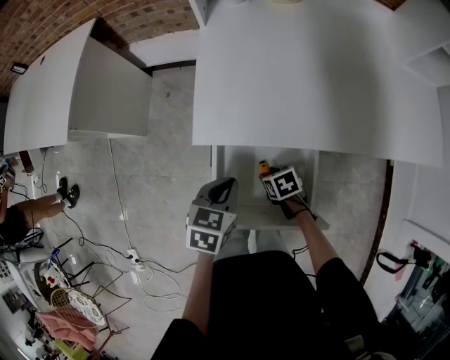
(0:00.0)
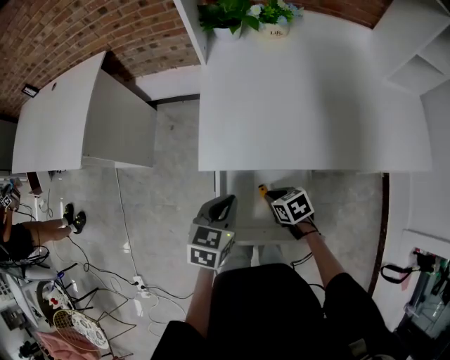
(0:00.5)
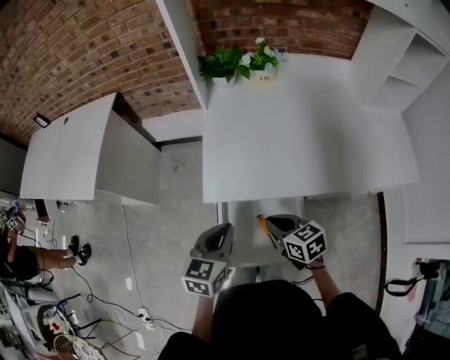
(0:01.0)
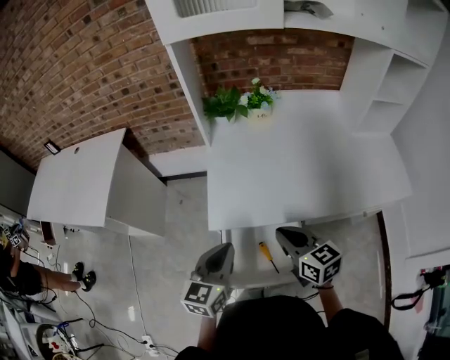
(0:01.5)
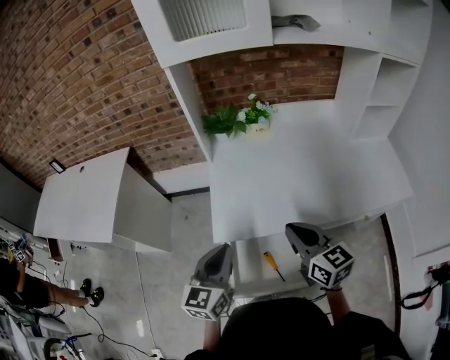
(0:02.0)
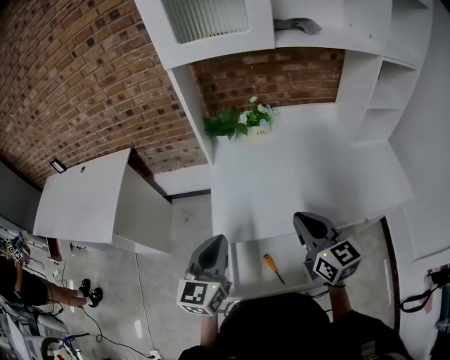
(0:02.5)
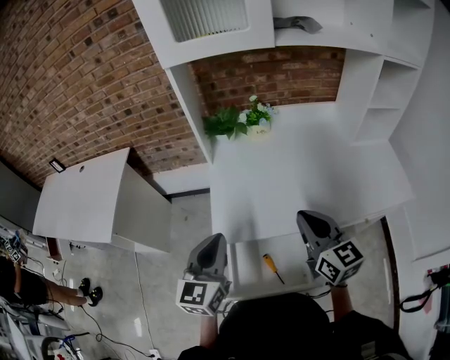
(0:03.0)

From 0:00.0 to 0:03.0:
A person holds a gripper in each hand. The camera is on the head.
From 0:00.0 to 0:01.5: The right gripper is displaced upward by some 35 cm, points its fingers some 50 degrees further upward, and closes its fingers. Meanwhile the left gripper shifts roughly 20 cm upward, and tilts its fingers roughly 30 degrees upward.
From 0:01.5 to 0:03.0: The right gripper travels upward and to the right by roughly 10 cm, and turns by approximately 20 degrees. Meanwhile the left gripper moves upward, some 10 cm.

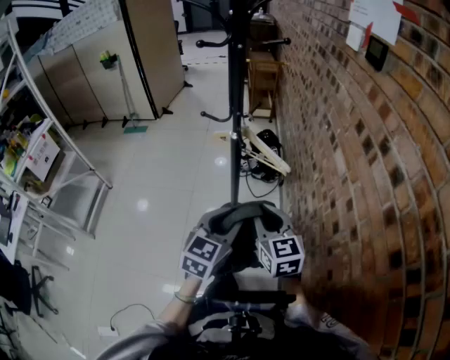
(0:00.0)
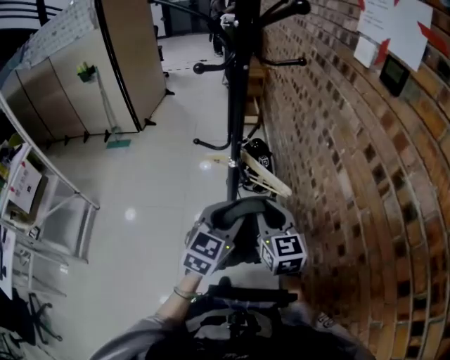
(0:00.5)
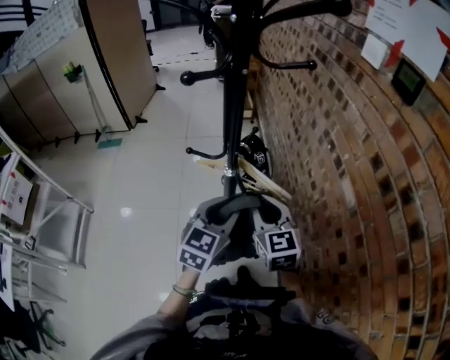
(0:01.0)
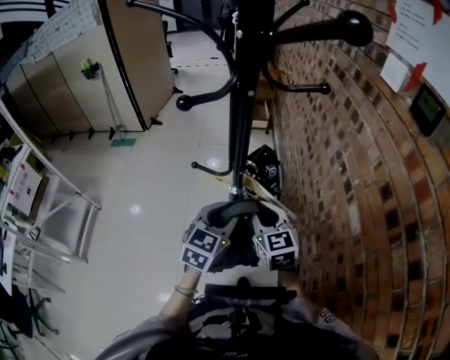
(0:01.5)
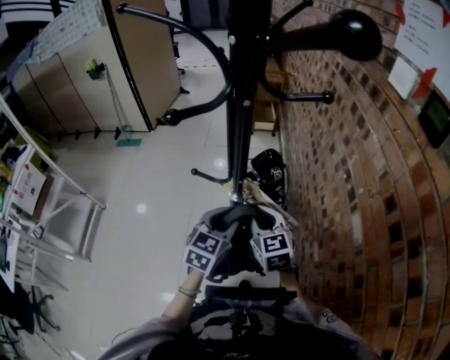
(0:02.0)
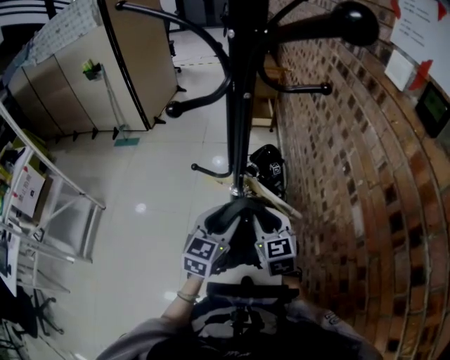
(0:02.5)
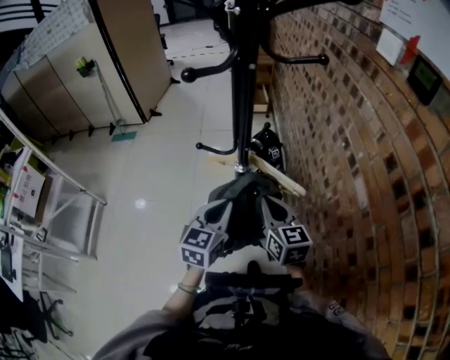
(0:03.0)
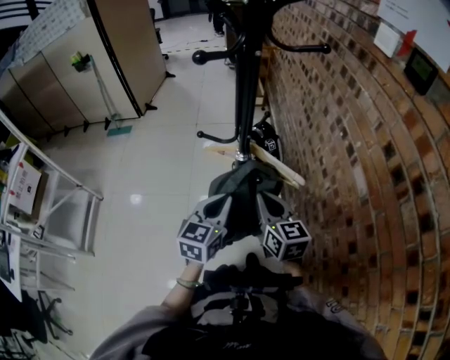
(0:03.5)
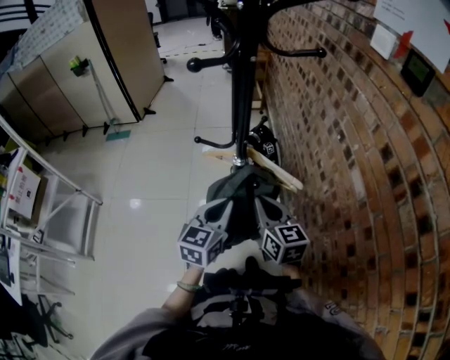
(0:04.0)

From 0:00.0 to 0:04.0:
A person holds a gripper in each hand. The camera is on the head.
From 0:00.0 to 0:02.0: The two grippers go roughly 25 cm forward.
From 0:02.0 to 0:04.0: The two grippers go some 10 cm backward. The left gripper closes its fingers. Meanwhile the right gripper rotates about 20 degrees.

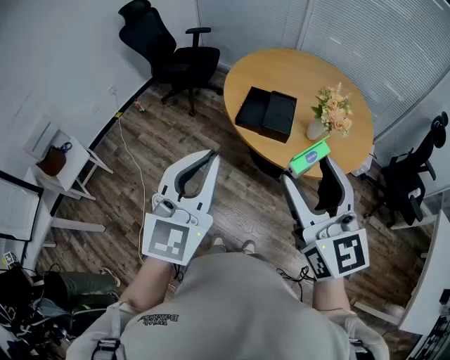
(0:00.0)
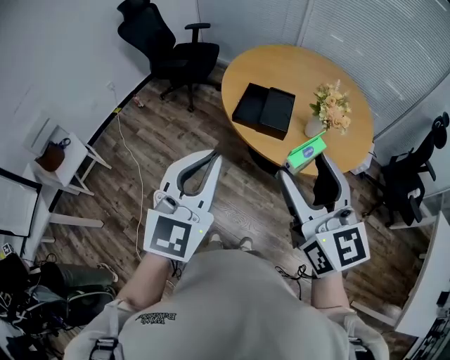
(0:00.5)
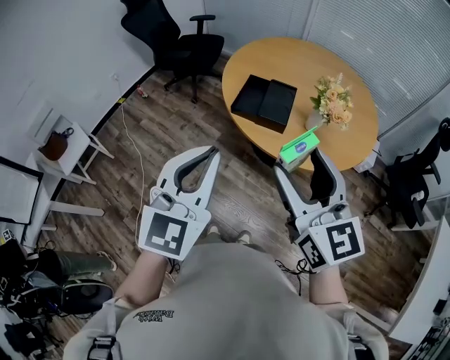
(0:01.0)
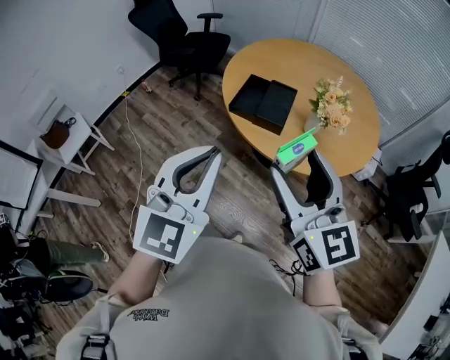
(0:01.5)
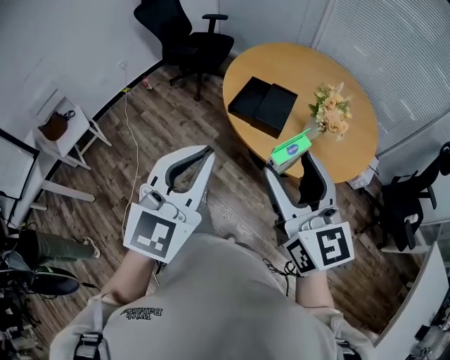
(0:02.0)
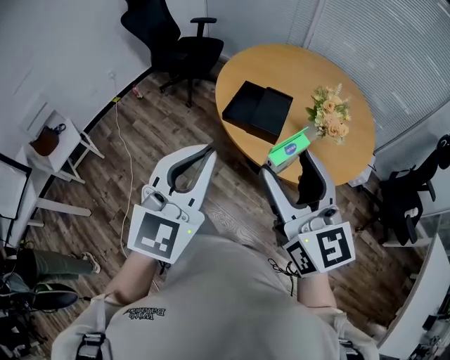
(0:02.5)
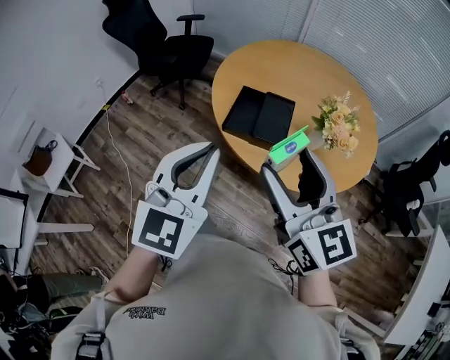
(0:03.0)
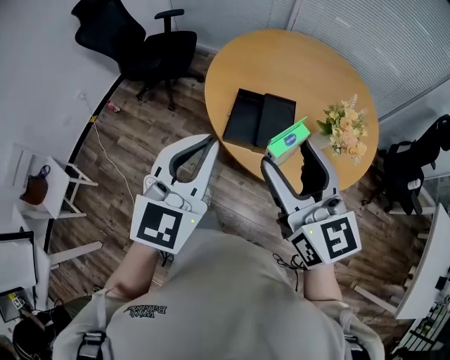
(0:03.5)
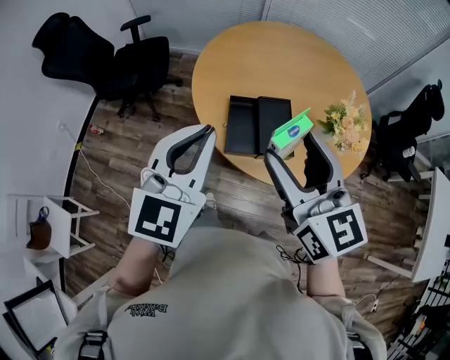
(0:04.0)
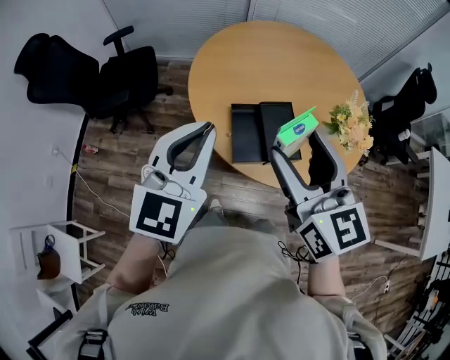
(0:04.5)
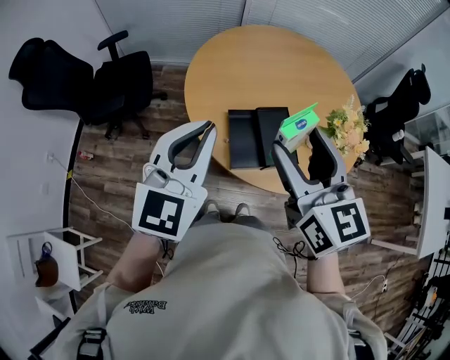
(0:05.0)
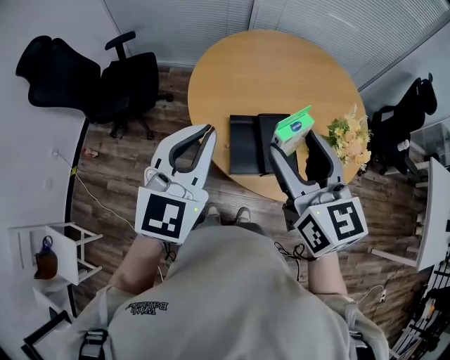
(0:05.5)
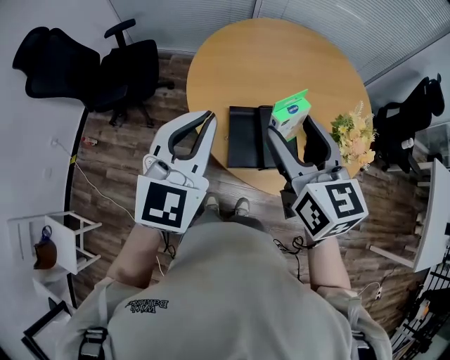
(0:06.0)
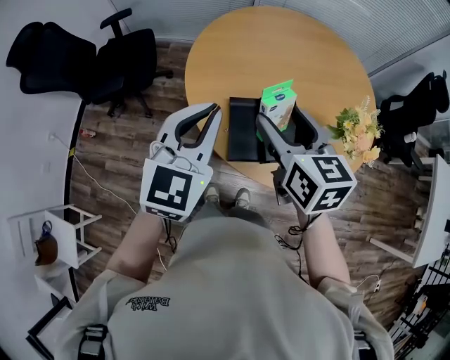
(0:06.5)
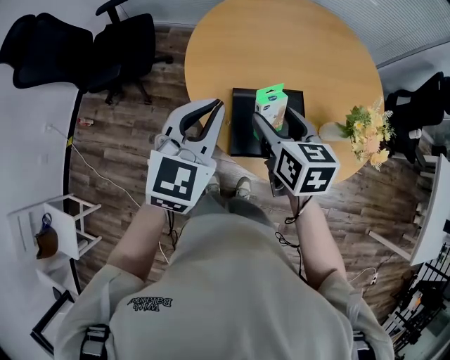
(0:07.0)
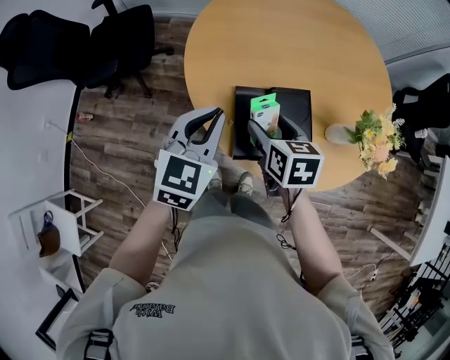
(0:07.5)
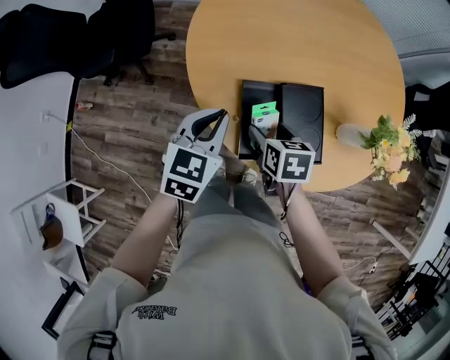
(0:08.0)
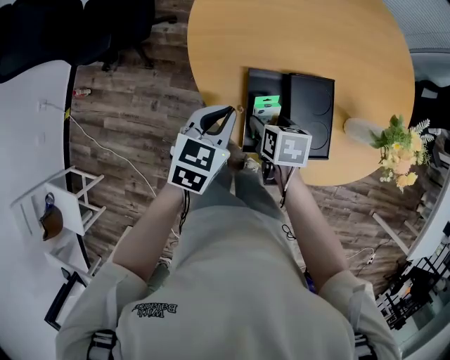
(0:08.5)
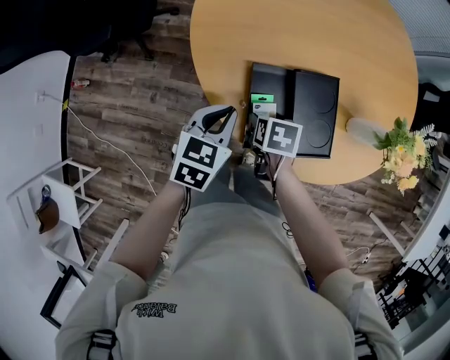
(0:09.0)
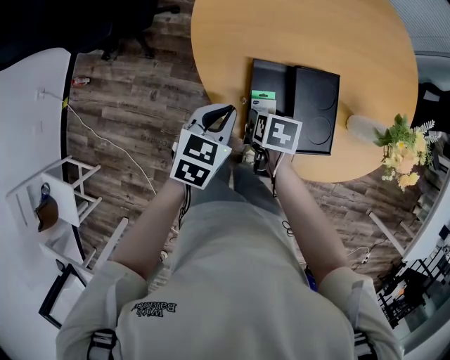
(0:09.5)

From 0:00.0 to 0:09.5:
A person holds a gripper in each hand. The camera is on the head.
From 0:00.0 to 0:02.0: The grippers both shift to the right by some 5 cm.
From 0:02.0 to 0:04.0: The right gripper goes approximately 30 cm forward and to the left, and turns by roughly 20 degrees. The left gripper is displaced forward by some 35 cm, and changes its angle by roughly 20 degrees.
From 0:04.0 to 0:05.5: Both grippers travel together forward, some 5 cm.
From 0:05.5 to 0:07.5: The left gripper moves downward and forward, roughly 20 cm, and swivels some 20 degrees. Meanwhile the right gripper is displaced downward by some 25 cm, and tilts its fingers approximately 30 degrees downward.
From 0:07.5 to 0:09.5: Both grippers travel together downward, about 15 cm. The right gripper turns by roughly 30 degrees. The left gripper changes its angle by some 20 degrees.

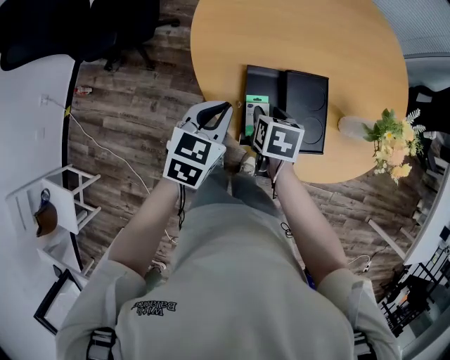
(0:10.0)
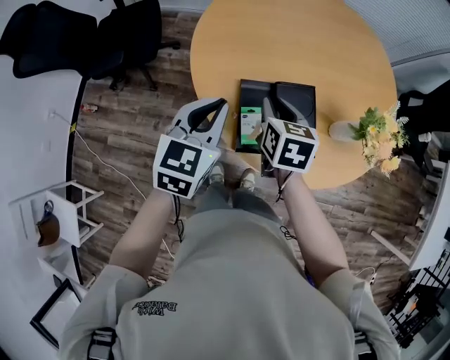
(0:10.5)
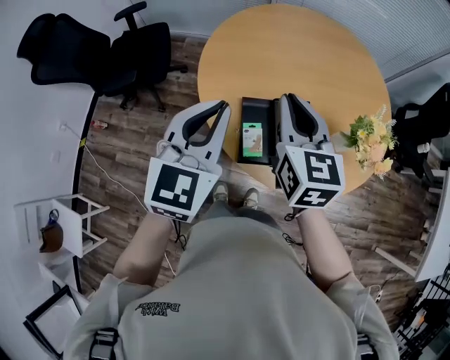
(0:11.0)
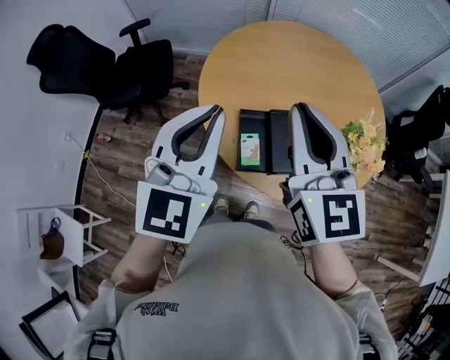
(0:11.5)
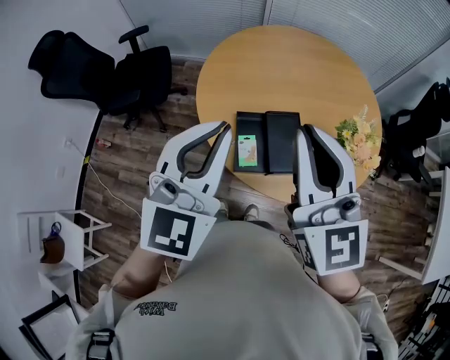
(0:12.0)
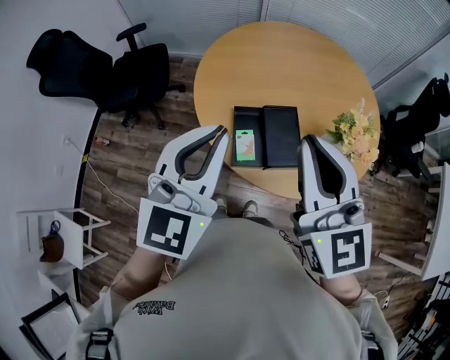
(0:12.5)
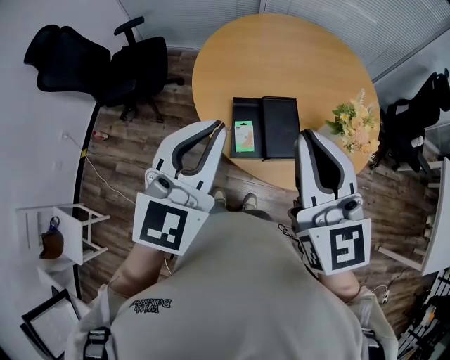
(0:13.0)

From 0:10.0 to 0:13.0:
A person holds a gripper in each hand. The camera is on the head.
From 0:10.0 to 0:11.5: The two grippers go approximately 35 cm upward. The left gripper tilts its fingers roughly 30 degrees upward. The right gripper angles its fingers upward, by roughly 60 degrees, and closes.
From 0:11.5 to 0:13.0: Both grippers move backward, some 10 cm.

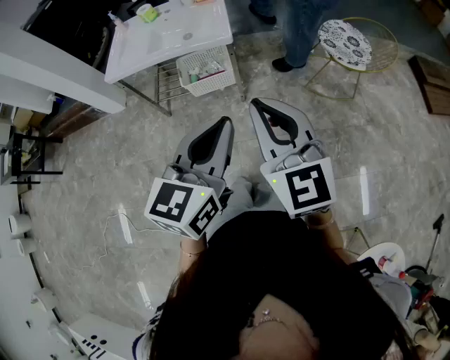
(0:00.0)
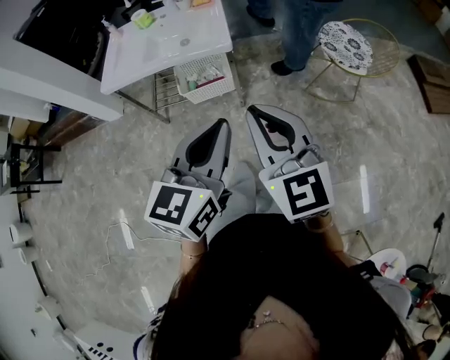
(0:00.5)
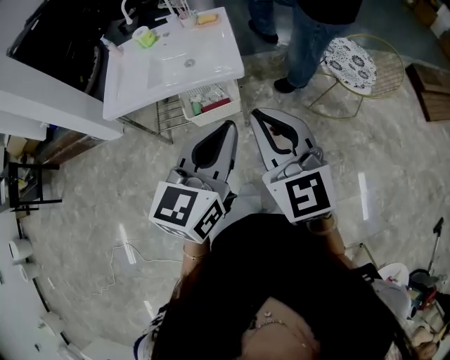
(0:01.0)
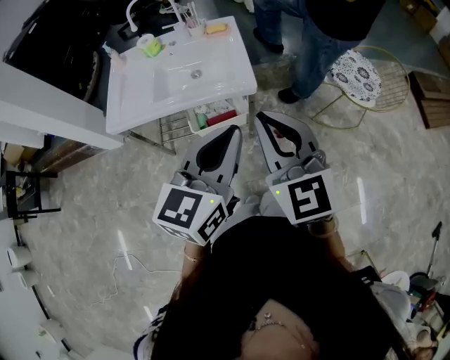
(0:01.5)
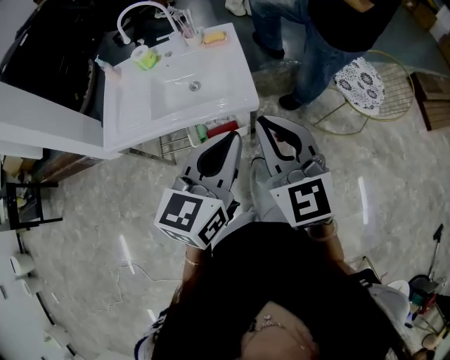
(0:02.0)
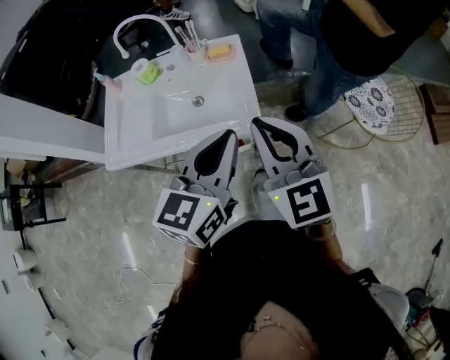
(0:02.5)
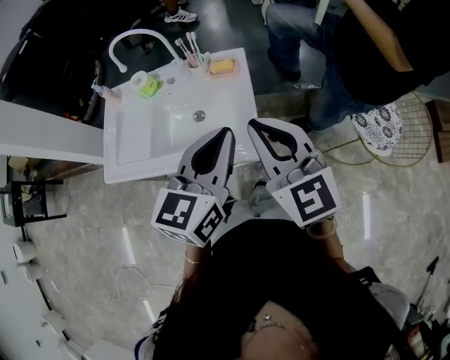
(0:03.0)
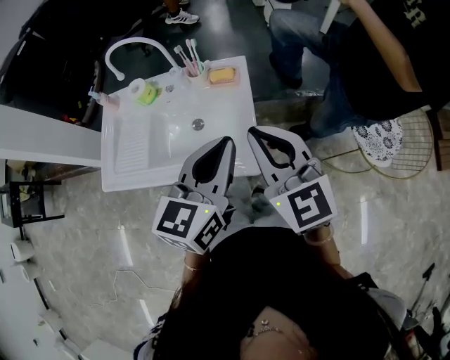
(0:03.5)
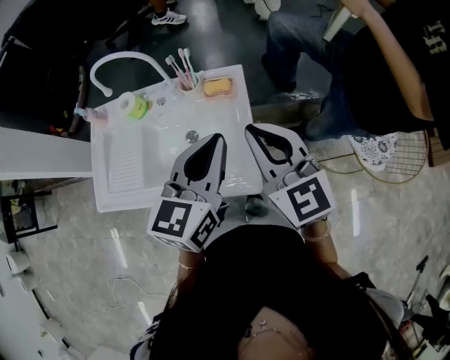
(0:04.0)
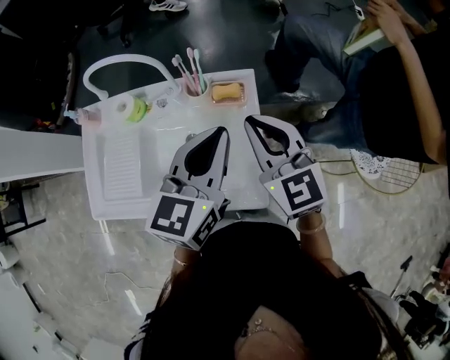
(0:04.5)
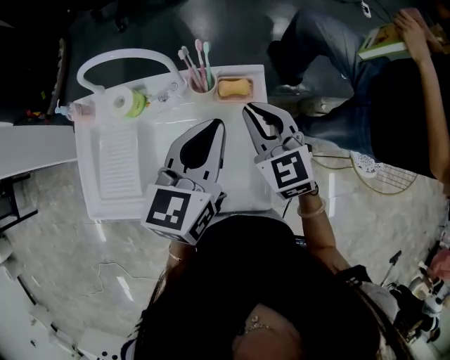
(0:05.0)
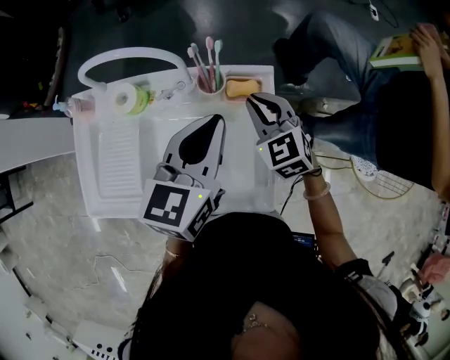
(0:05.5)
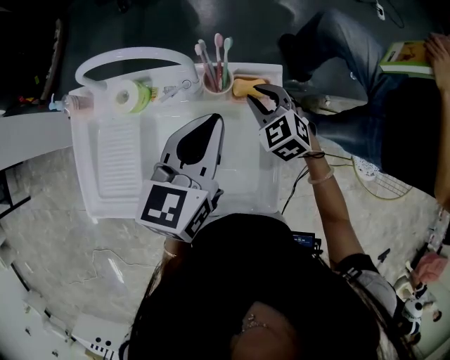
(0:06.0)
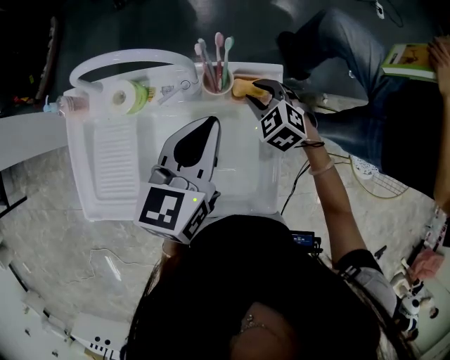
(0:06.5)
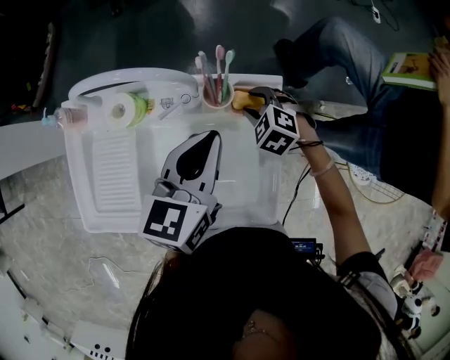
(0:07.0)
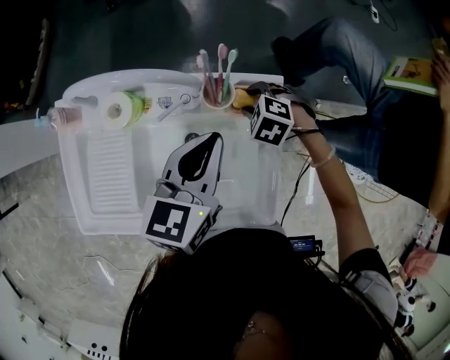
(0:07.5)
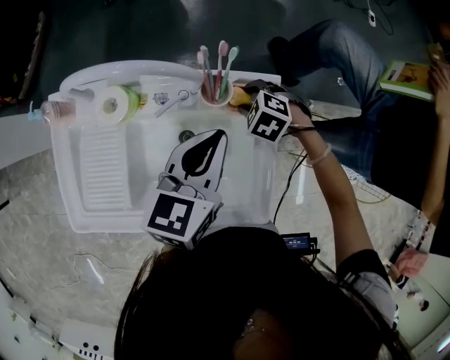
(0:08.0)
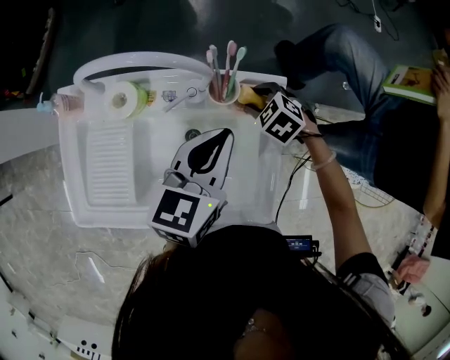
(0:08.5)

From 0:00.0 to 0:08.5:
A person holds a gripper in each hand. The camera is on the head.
From 0:00.0 to 0:02.0: The two grippers go approximately 30 cm forward.
From 0:02.0 to 0:04.0: The two grippers go roughly 35 cm forward.
From 0:04.0 to 0:06.5: The right gripper travels downward and forward by roughly 35 cm, angles its fingers downward, by about 50 degrees, and opens. The left gripper moves forward, to the left and downward, about 25 cm.
